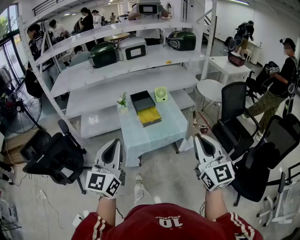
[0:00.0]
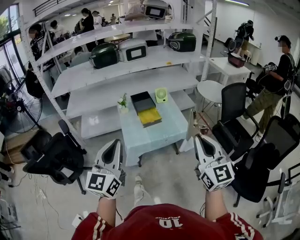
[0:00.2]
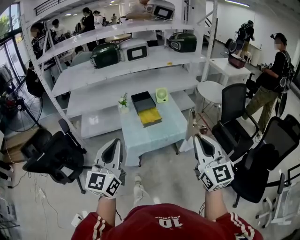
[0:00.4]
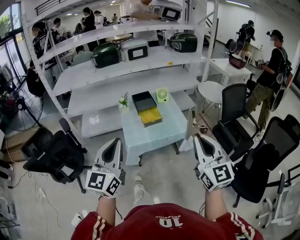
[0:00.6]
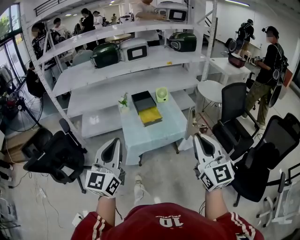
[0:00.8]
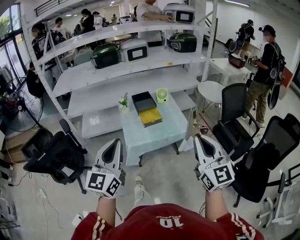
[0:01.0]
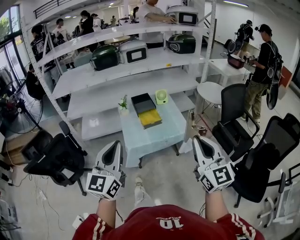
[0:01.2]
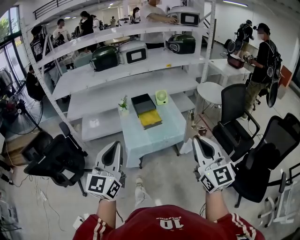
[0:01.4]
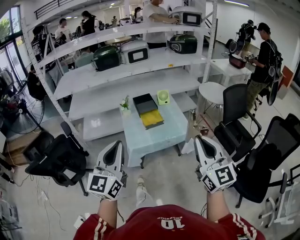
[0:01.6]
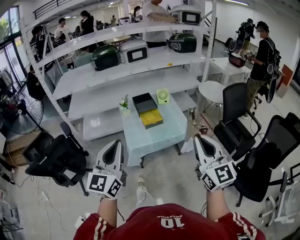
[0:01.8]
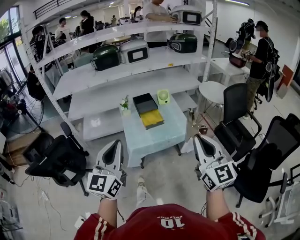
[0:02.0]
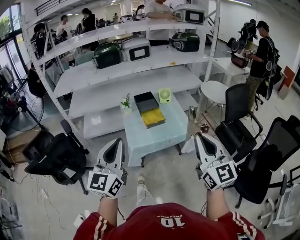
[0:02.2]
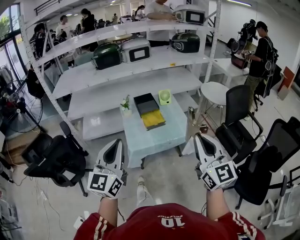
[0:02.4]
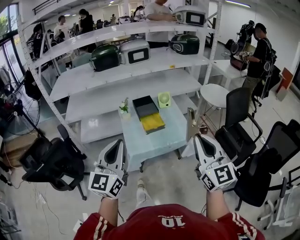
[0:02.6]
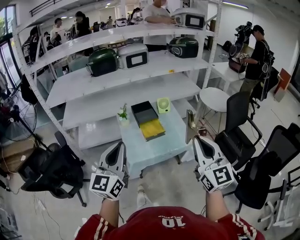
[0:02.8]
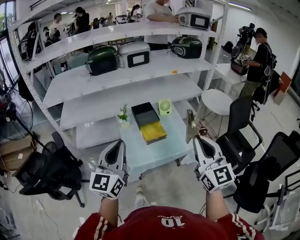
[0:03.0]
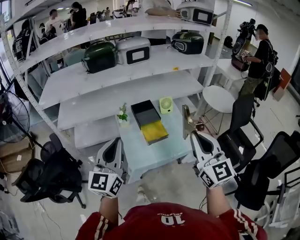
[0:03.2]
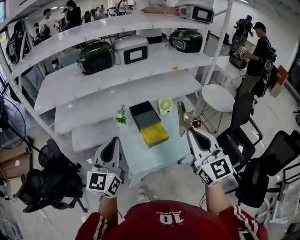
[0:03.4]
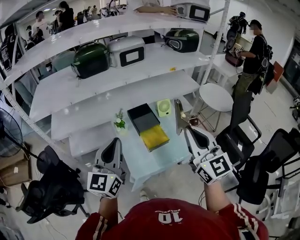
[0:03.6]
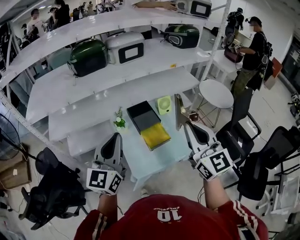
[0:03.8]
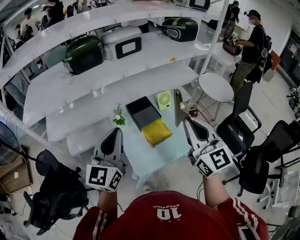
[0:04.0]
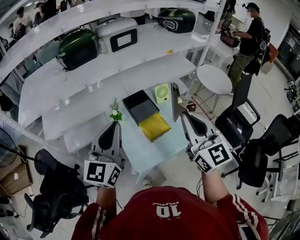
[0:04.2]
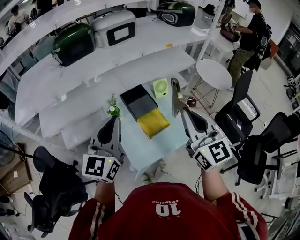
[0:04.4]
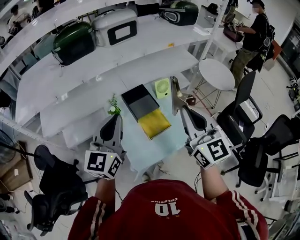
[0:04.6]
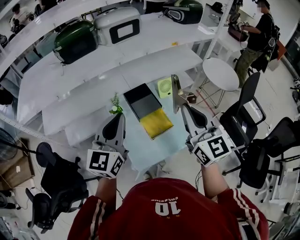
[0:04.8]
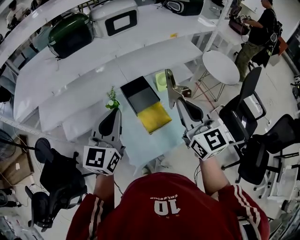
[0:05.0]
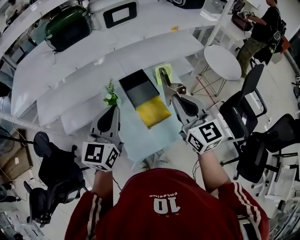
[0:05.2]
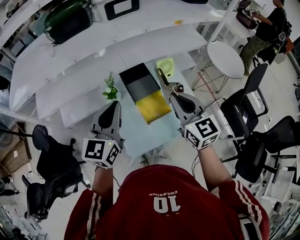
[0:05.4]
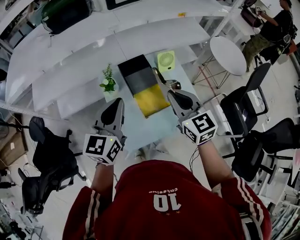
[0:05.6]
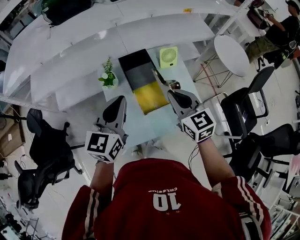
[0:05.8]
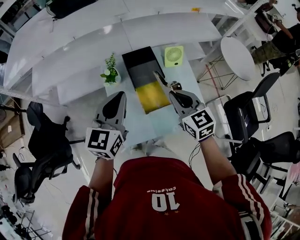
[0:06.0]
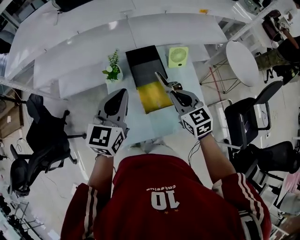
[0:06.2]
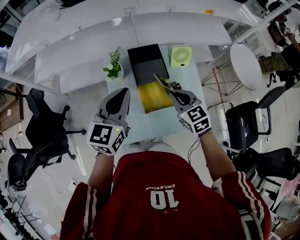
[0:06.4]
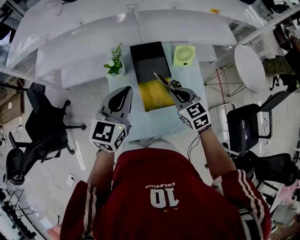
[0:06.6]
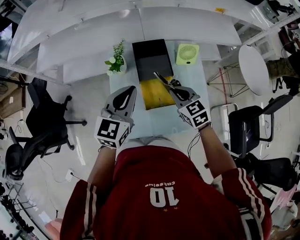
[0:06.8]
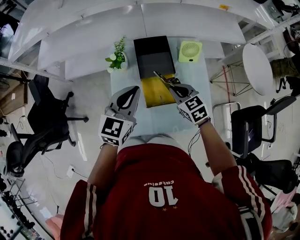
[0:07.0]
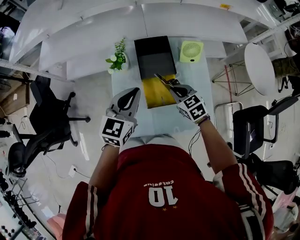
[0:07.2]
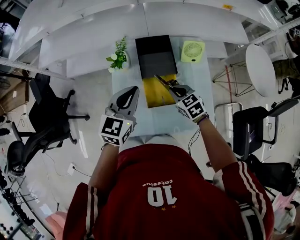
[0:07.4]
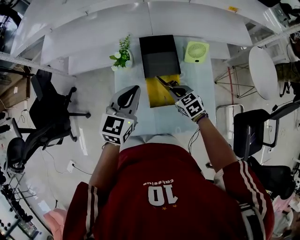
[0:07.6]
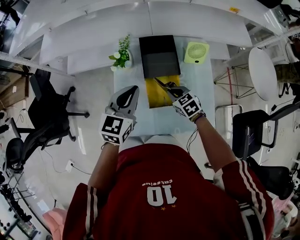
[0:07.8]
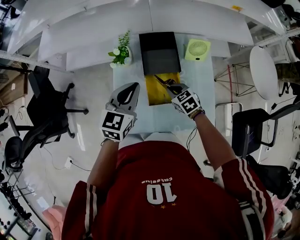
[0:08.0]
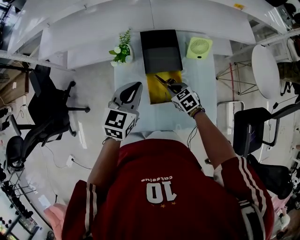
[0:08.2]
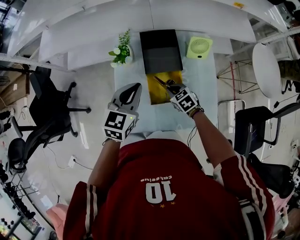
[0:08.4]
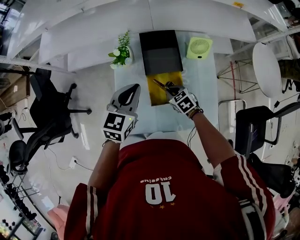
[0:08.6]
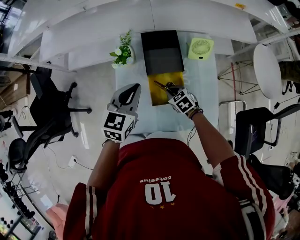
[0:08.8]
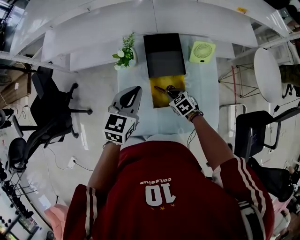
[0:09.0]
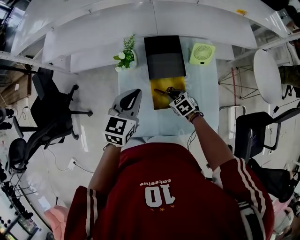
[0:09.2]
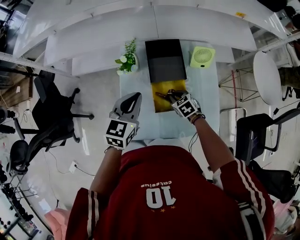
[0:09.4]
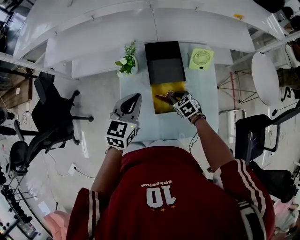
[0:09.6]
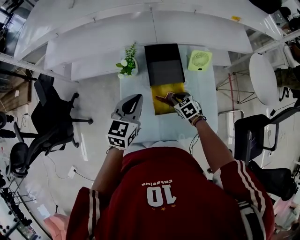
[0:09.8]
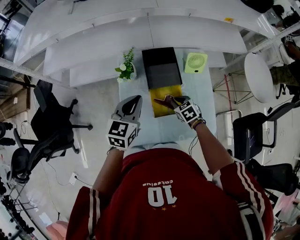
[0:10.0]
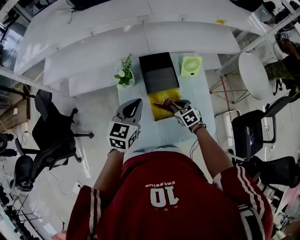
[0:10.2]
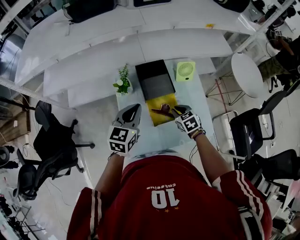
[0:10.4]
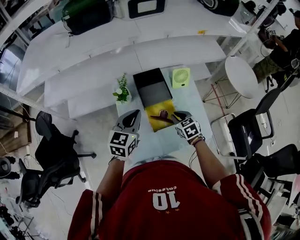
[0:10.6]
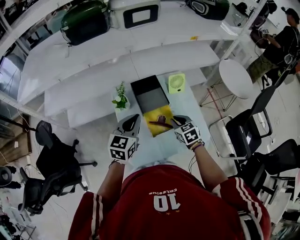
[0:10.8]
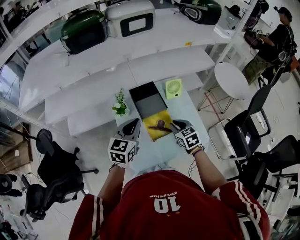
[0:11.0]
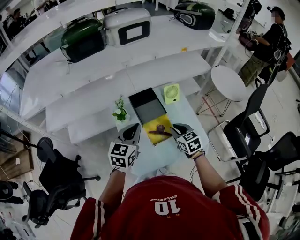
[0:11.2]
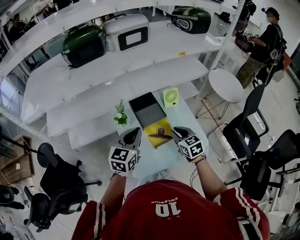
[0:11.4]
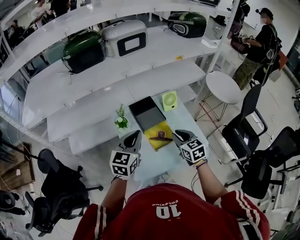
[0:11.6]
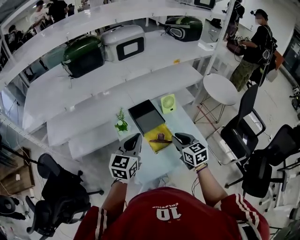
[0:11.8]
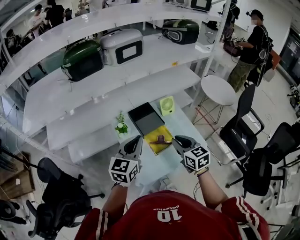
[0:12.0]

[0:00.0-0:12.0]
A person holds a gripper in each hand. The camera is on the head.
0.0 to 1.6 s: The grippers make only small movements.
1.6 to 3.0 s: Both grippers travel together forward, roughly 20 cm.
3.0 to 4.4 s: The right gripper moves forward and to the left, some 25 cm, while the left gripper moves forward, approximately 25 cm.
4.4 to 6.0 s: The left gripper moves downward and forward, approximately 15 cm. Meanwhile the right gripper heads downward and forward, covering roughly 30 cm, and changes its angle by about 30 degrees.
6.0 to 7.6 s: The right gripper heads downward, covering about 20 cm, and swivels some 30 degrees; the left gripper heads downward, covering approximately 10 cm.
7.6 to 9.0 s: The right gripper travels downward by about 5 cm.
9.0 to 10.4 s: The right gripper shifts about 10 cm upward, and turns by some 20 degrees.
10.4 to 12.0 s: The right gripper travels upward and backward by roughly 30 cm, and changes its angle by about 40 degrees; the left gripper shifts approximately 15 cm upward and backward.

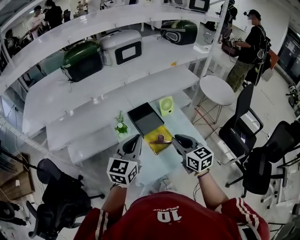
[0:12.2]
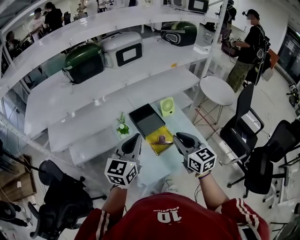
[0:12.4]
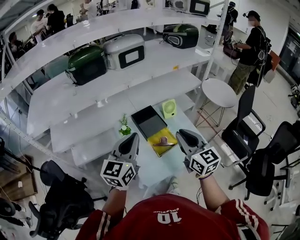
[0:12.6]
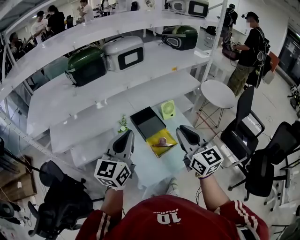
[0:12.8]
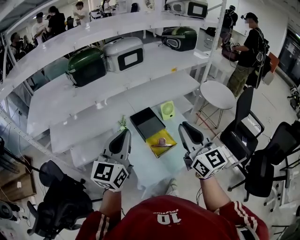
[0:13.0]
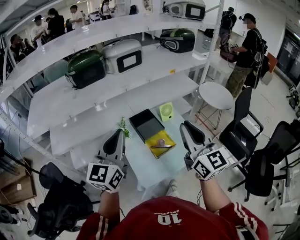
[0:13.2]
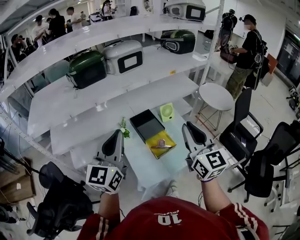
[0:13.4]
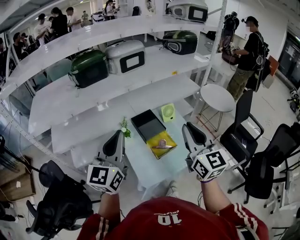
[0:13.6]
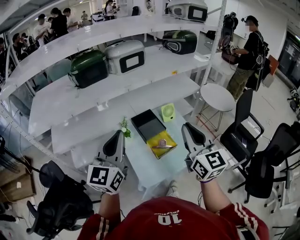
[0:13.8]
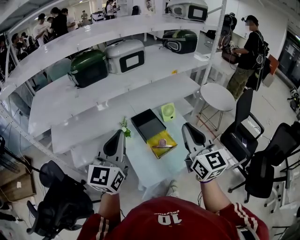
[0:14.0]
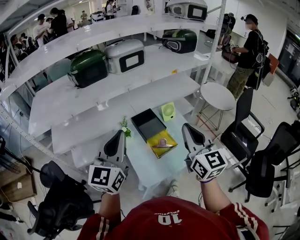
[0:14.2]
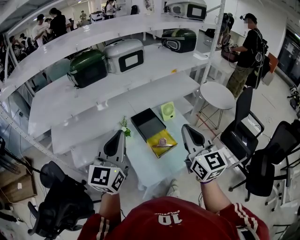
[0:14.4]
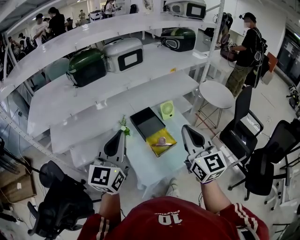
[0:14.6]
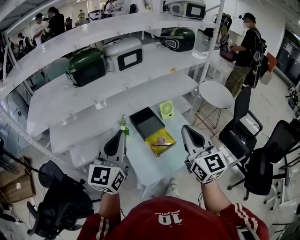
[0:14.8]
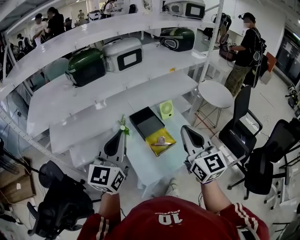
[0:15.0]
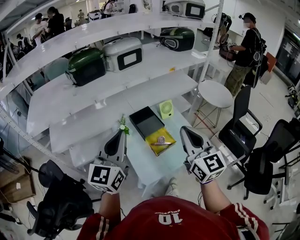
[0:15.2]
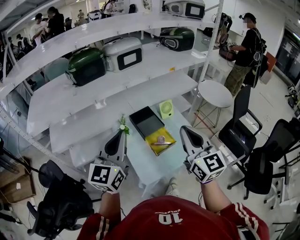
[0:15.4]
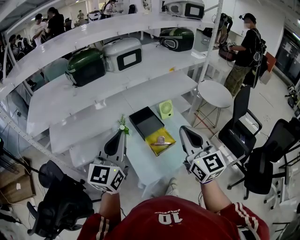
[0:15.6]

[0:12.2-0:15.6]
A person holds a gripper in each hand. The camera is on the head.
12.2 to 13.8 s: The right gripper heads upward, covering about 20 cm, and changes its angle by approximately 30 degrees, while the left gripper is displaced upward, to the left and backward by roughly 15 cm.
13.8 to 15.6 s: The grippers move only a little.

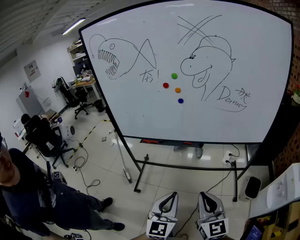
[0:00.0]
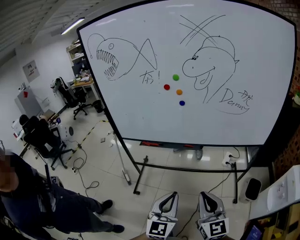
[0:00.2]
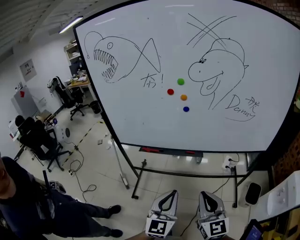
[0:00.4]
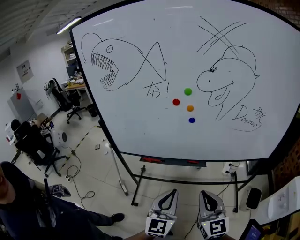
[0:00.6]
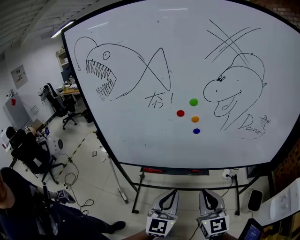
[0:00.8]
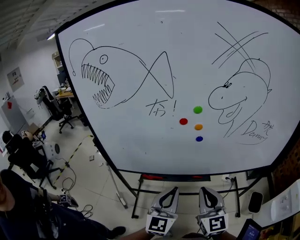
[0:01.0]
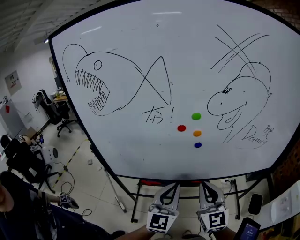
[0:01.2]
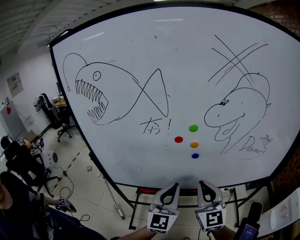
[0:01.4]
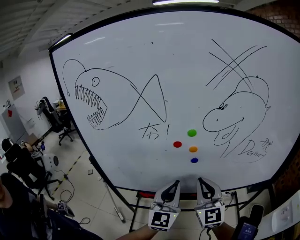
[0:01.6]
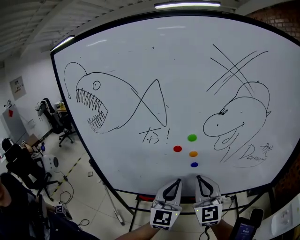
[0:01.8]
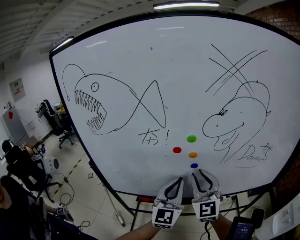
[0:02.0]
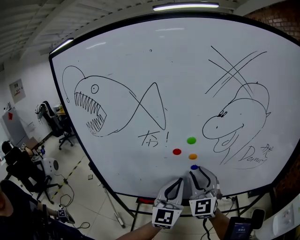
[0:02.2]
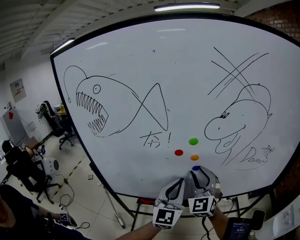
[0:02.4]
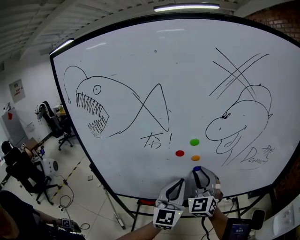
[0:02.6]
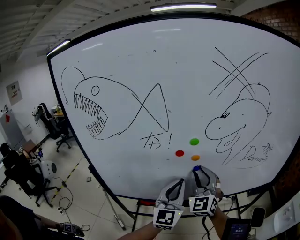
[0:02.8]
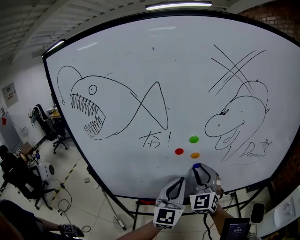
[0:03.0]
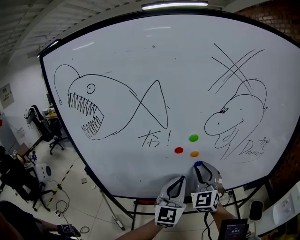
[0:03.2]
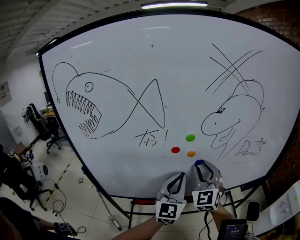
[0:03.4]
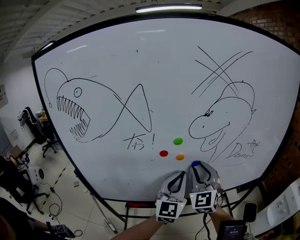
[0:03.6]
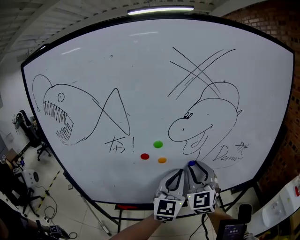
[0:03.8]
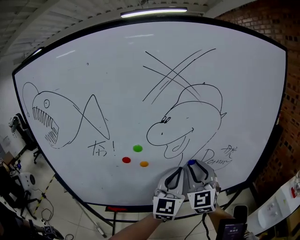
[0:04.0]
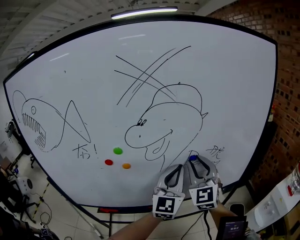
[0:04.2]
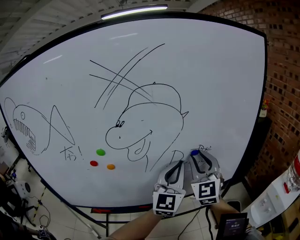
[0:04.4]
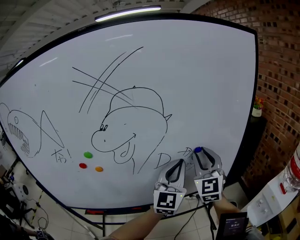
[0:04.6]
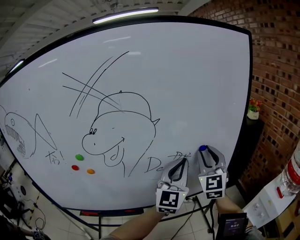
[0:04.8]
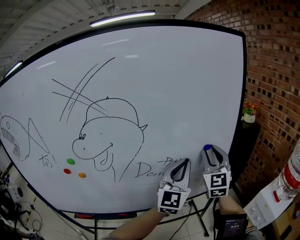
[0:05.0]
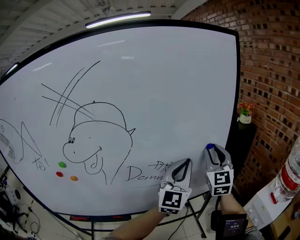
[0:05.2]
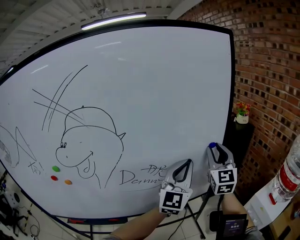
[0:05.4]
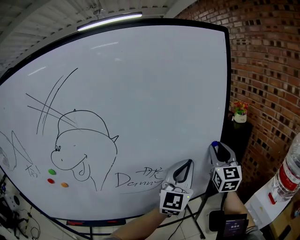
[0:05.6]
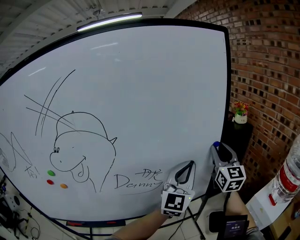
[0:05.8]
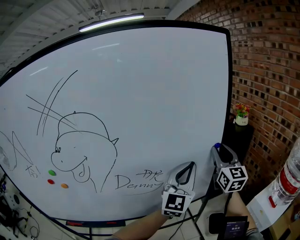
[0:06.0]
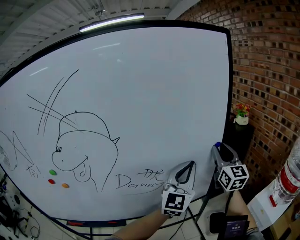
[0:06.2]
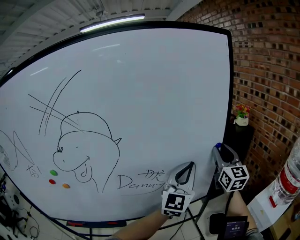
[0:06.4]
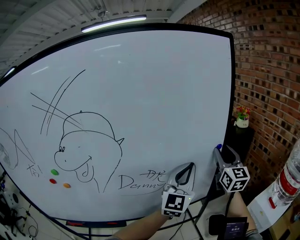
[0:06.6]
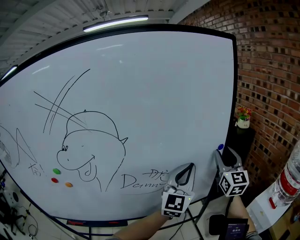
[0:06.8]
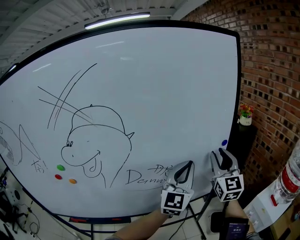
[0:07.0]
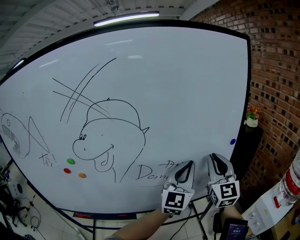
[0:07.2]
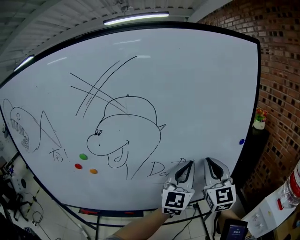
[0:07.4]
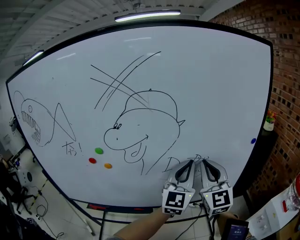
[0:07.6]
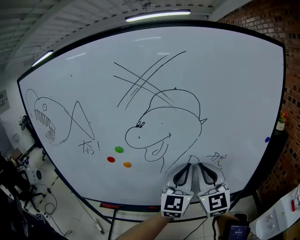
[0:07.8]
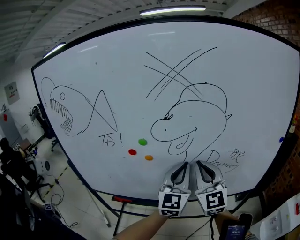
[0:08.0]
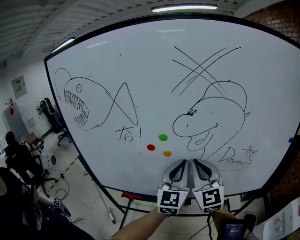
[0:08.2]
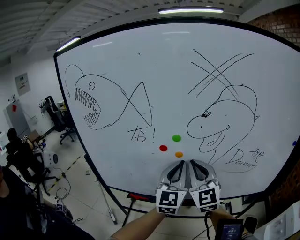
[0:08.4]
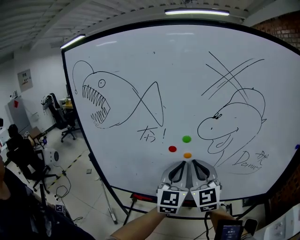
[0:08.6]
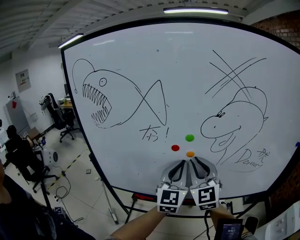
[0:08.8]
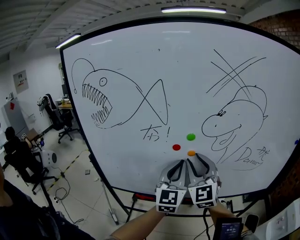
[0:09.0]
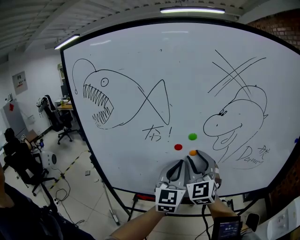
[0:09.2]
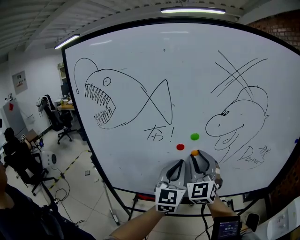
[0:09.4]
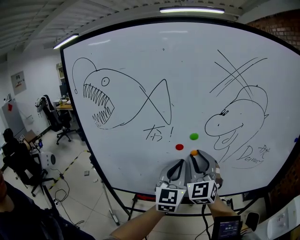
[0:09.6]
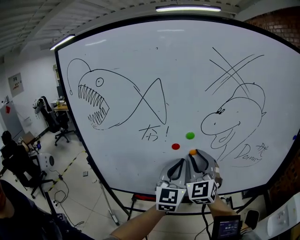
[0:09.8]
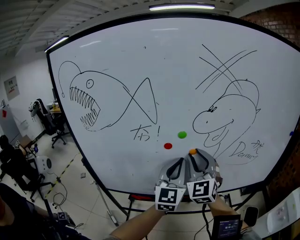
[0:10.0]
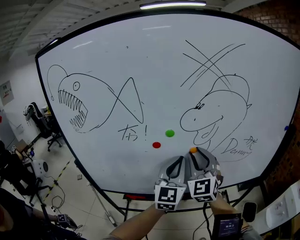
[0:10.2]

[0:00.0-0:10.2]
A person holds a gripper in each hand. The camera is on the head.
0.0 to 1.4 s: The grippers both shift forward by approximately 35 cm.
1.4 to 3.0 s: The right gripper heads forward, covering about 10 cm, swivels some 30 degrees, and opens up; the left gripper goes approximately 5 cm forward.
3.0 to 4.4 s: The two grippers go approximately 30 cm to the right.
4.4 to 5.8 s: The two grippers go roughly 30 cm to the right and forward. The right gripper changes its angle by some 20 degrees.
5.8 to 7.2 s: The right gripper travels to the left and backward by some 15 cm; the left gripper goes roughly 10 cm to the left.
7.2 to 8.8 s: Both grippers are carried approximately 50 cm. The left gripper swivels roughly 30 degrees. The right gripper swivels approximately 30 degrees.
8.8 to 10.2 s: Both grippers move to the right, approximately 5 cm.
